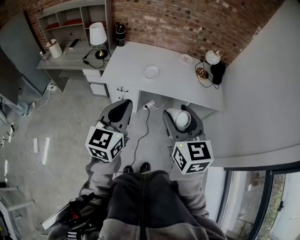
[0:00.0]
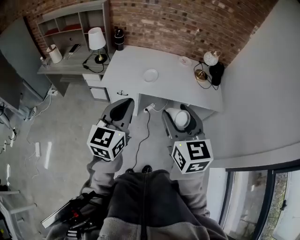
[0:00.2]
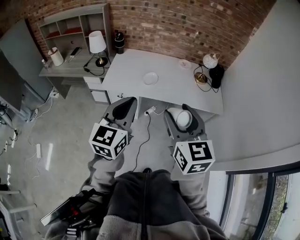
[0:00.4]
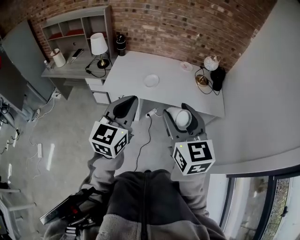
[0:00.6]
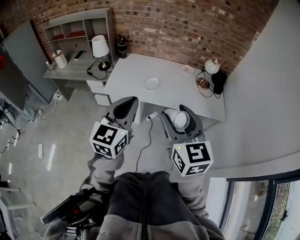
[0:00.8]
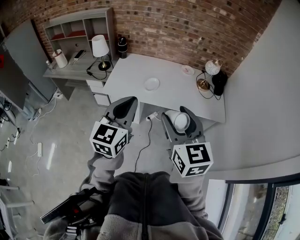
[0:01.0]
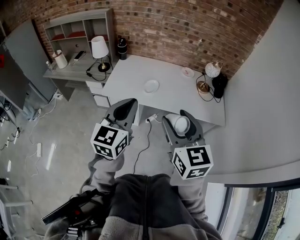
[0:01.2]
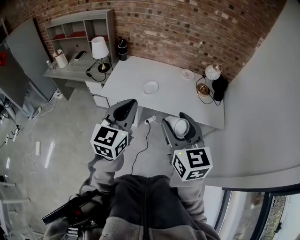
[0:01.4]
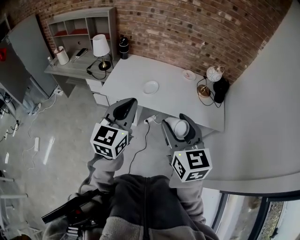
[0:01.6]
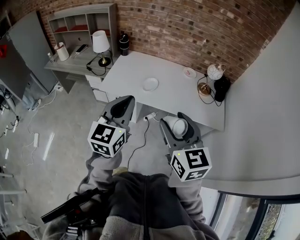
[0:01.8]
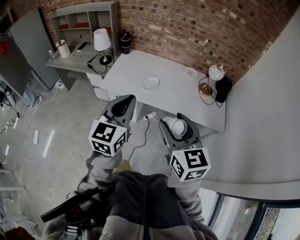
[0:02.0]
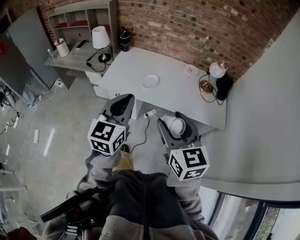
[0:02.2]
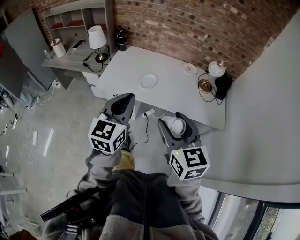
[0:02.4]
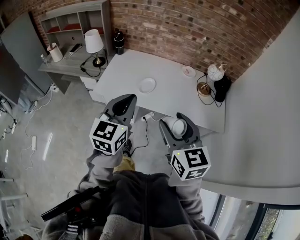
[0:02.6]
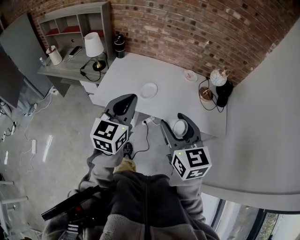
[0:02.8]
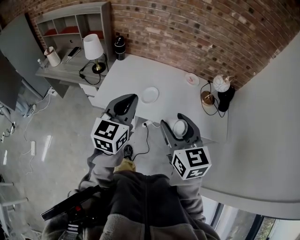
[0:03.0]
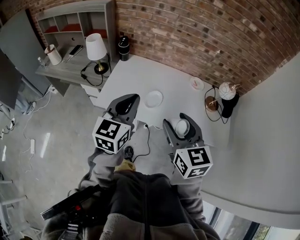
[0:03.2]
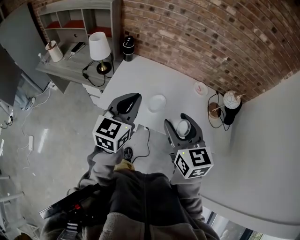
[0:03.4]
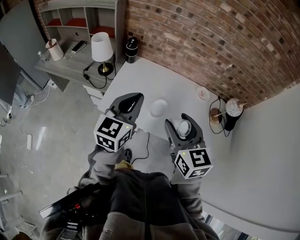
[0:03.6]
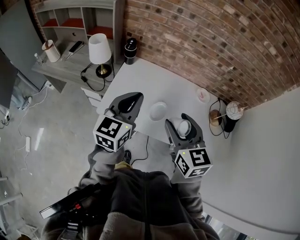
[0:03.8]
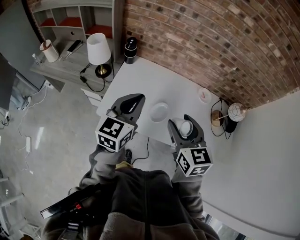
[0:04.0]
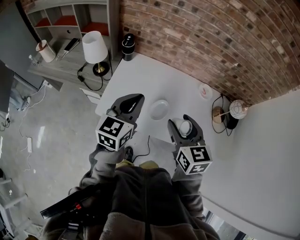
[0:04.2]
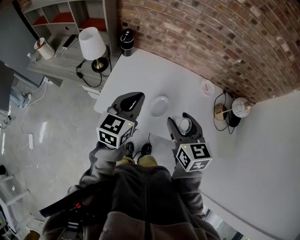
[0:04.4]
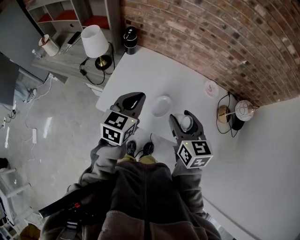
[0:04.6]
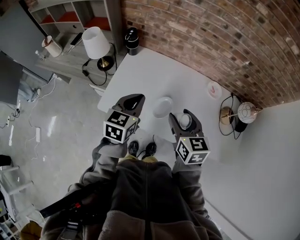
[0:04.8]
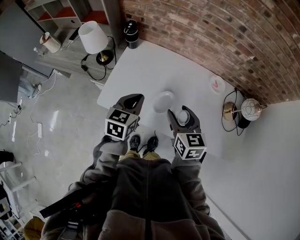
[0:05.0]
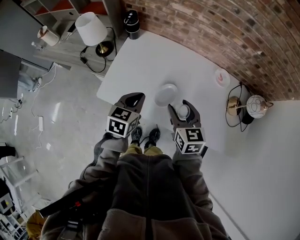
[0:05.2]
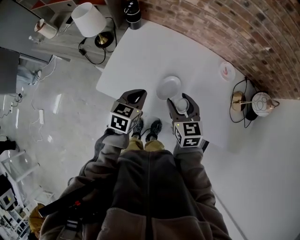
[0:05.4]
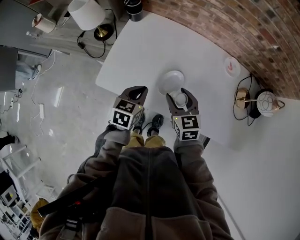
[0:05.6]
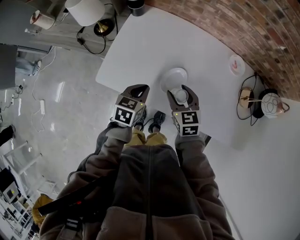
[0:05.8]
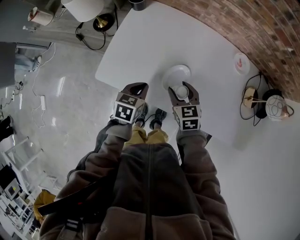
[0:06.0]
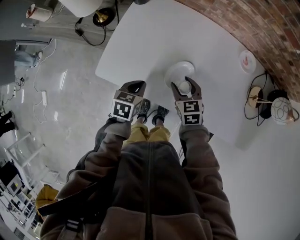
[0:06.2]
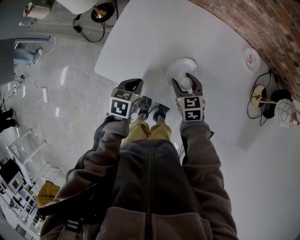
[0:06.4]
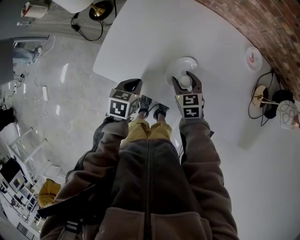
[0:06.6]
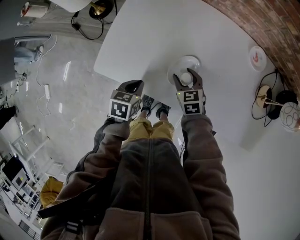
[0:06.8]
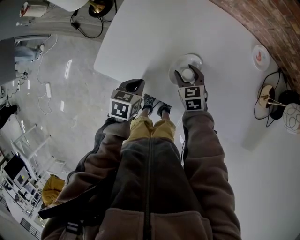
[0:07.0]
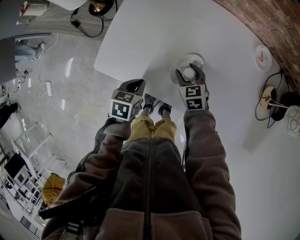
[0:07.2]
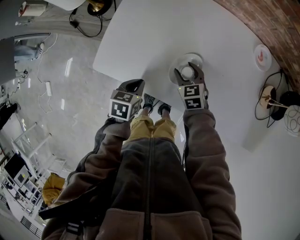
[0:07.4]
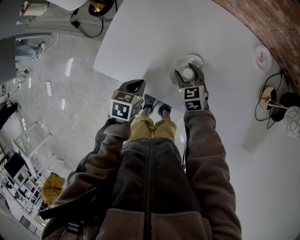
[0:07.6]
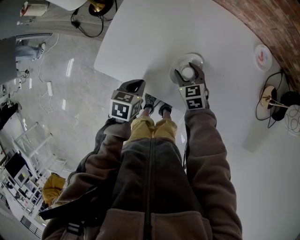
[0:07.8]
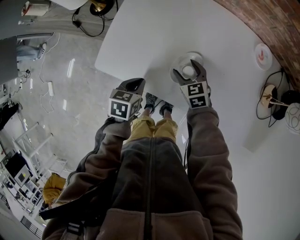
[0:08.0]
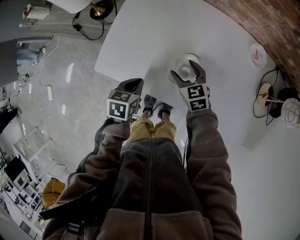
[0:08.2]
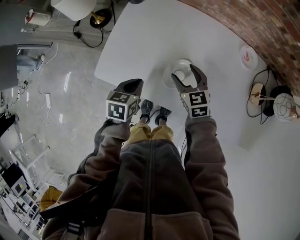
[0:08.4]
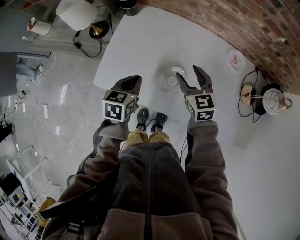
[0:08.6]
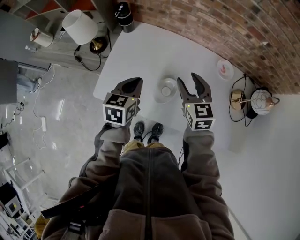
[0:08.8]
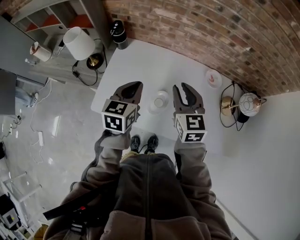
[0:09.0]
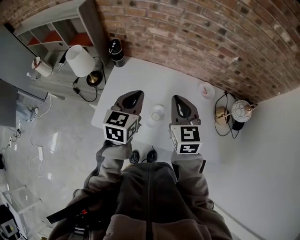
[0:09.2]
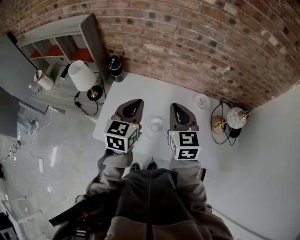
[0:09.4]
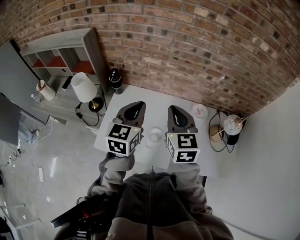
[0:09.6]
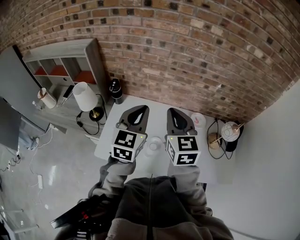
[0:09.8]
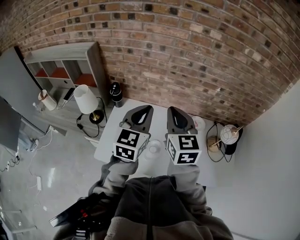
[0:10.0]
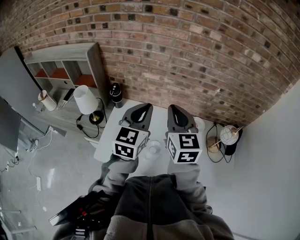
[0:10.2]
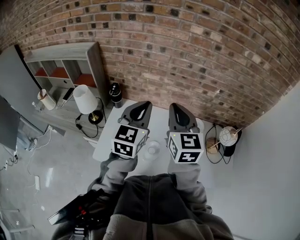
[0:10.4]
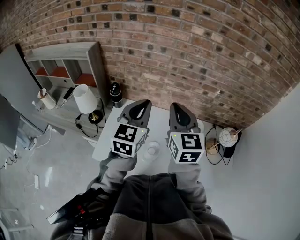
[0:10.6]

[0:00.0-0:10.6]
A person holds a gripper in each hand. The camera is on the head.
0:00.0 to 0:01.6: The right gripper shifts some 10 cm to the right. Meanwhile the left gripper is displaced to the right and forward by approximately 10 cm.
0:01.6 to 0:03.0: Both grippers travel together forward, about 15 cm.
0:03.0 to 0:04.6: The left gripper goes approximately 25 cm forward and downward. The right gripper moves forward, about 25 cm.
0:04.6 to 0:06.0: Both grippers travel together downward, approximately 25 cm. The left gripper rotates approximately 30 degrees, while the right gripper turns by roughly 20 degrees.
0:06.0 to 0:07.6: The left gripper shifts about 5 cm downward. The right gripper shifts roughly 10 cm downward.
0:07.6 to 0:09.0: Both grippers travel together upward, some 30 cm. The left gripper angles its fingers upward, by roughly 30 degrees. Meanwhile the right gripper changes its angle by roughly 30 degrees, and closes its fingers.
0:09.0 to 0:10.6: The grippers both shift upward by about 20 cm. The left gripper changes its angle by some 30 degrees.

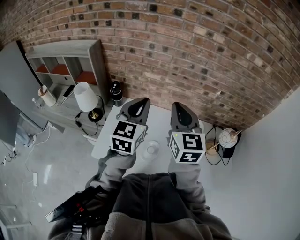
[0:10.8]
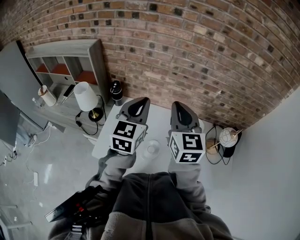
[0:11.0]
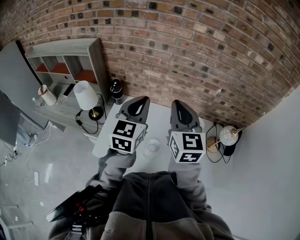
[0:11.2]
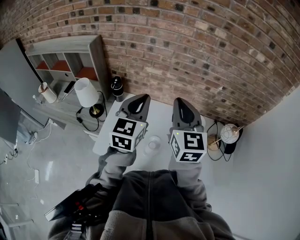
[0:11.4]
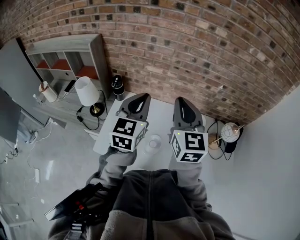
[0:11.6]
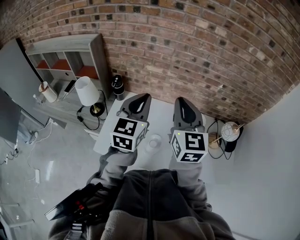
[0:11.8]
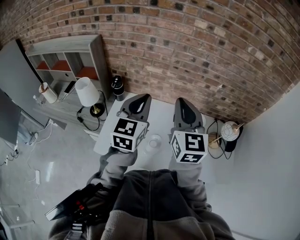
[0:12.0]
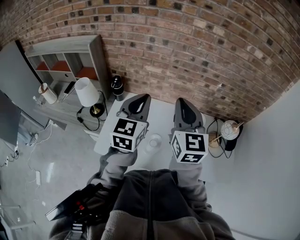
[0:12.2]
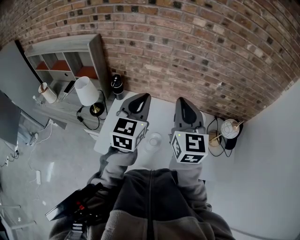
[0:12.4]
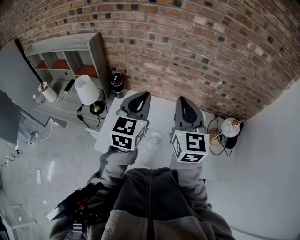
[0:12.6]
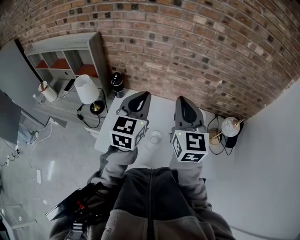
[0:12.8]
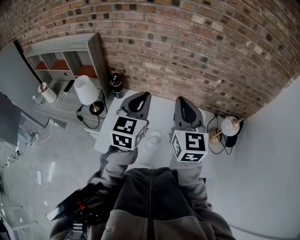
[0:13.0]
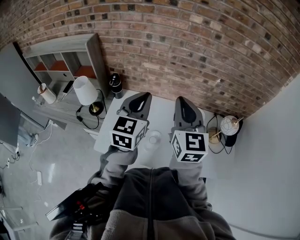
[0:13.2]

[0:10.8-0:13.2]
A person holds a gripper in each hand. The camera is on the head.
0:10.8 to 0:13.2: There are only small adjustments of the grippers.

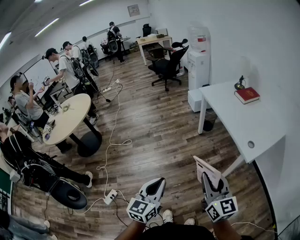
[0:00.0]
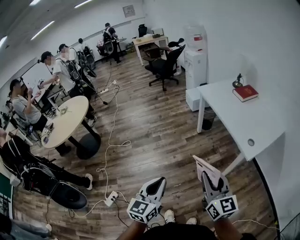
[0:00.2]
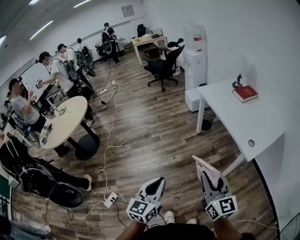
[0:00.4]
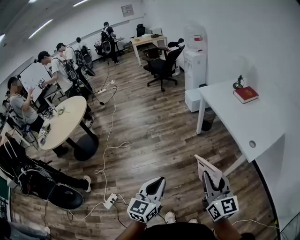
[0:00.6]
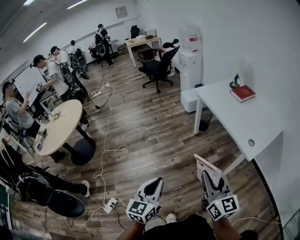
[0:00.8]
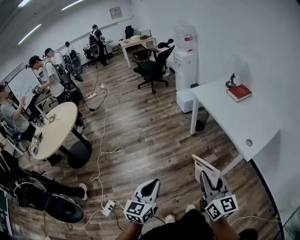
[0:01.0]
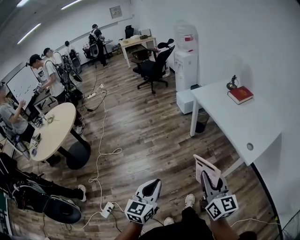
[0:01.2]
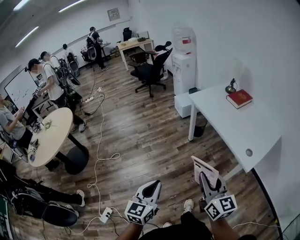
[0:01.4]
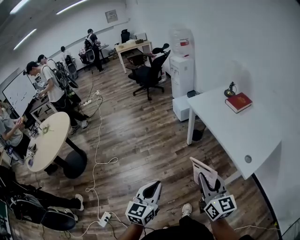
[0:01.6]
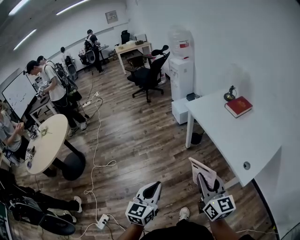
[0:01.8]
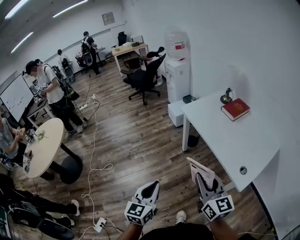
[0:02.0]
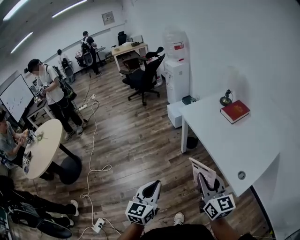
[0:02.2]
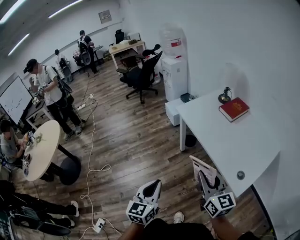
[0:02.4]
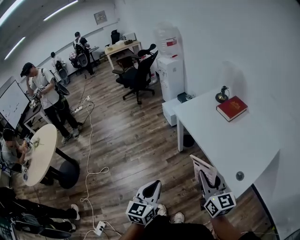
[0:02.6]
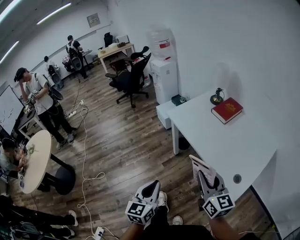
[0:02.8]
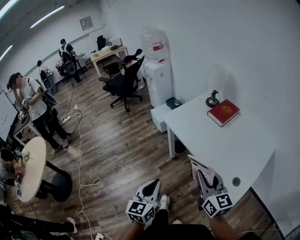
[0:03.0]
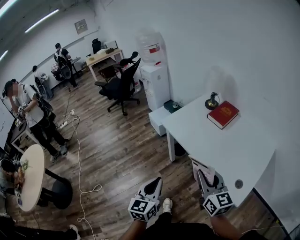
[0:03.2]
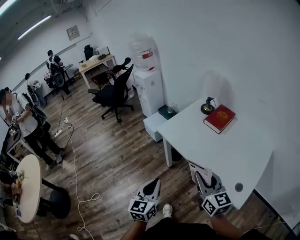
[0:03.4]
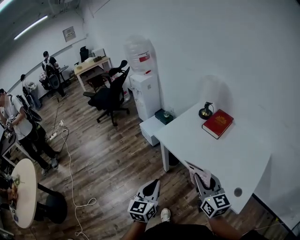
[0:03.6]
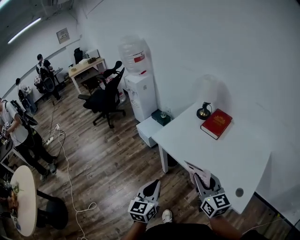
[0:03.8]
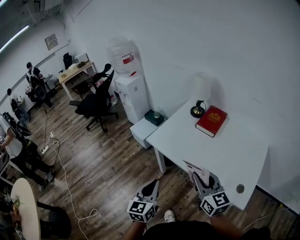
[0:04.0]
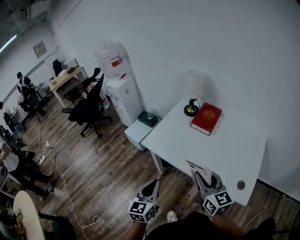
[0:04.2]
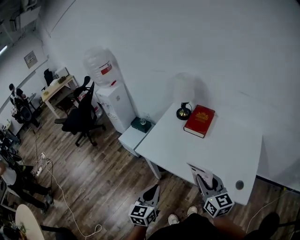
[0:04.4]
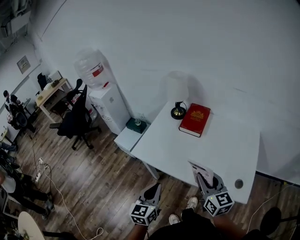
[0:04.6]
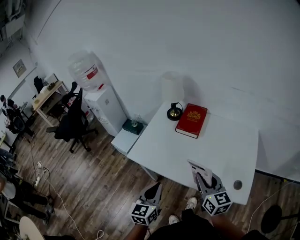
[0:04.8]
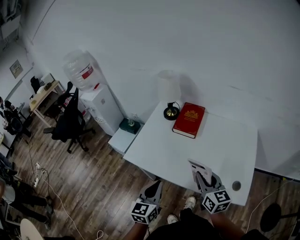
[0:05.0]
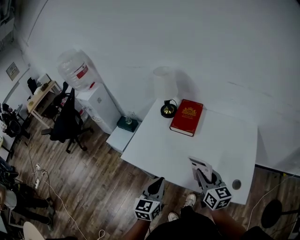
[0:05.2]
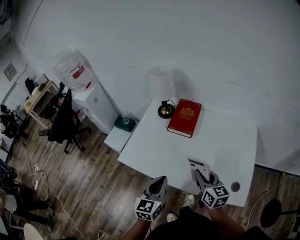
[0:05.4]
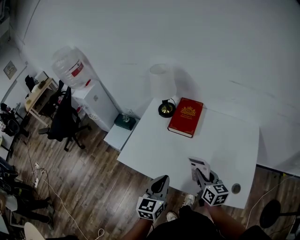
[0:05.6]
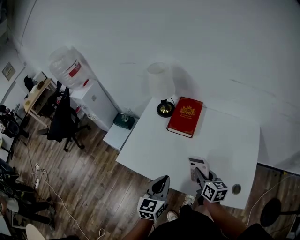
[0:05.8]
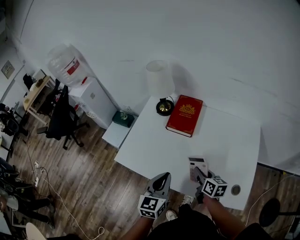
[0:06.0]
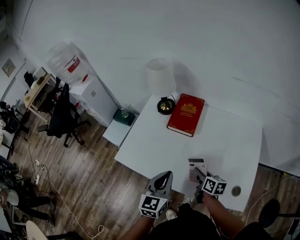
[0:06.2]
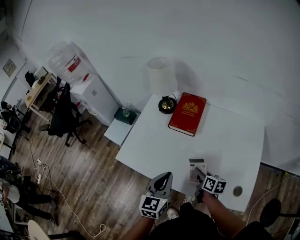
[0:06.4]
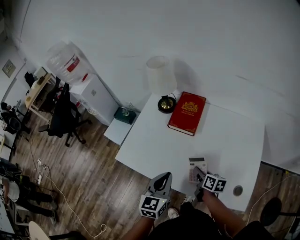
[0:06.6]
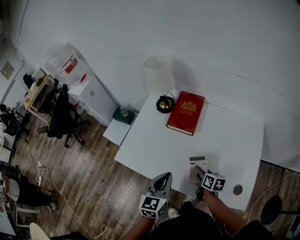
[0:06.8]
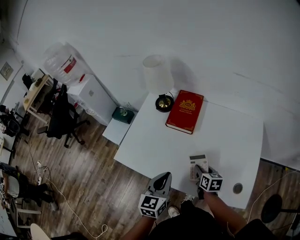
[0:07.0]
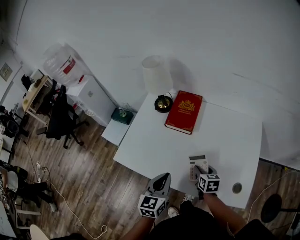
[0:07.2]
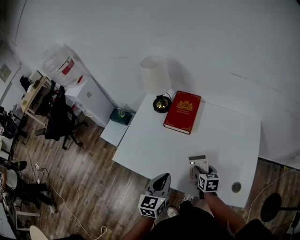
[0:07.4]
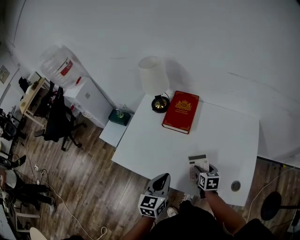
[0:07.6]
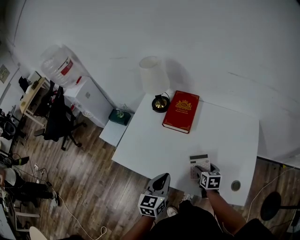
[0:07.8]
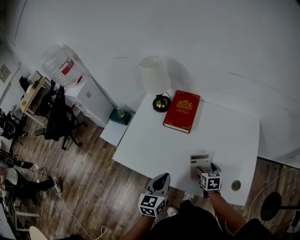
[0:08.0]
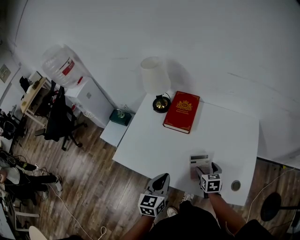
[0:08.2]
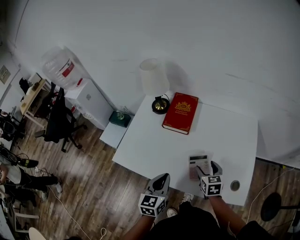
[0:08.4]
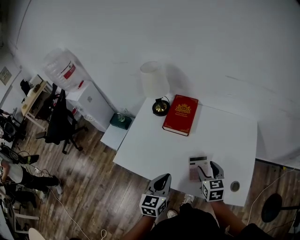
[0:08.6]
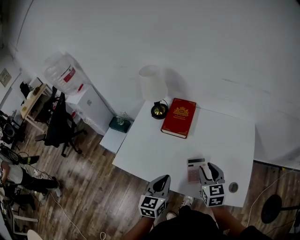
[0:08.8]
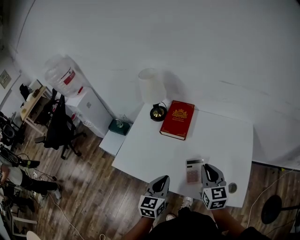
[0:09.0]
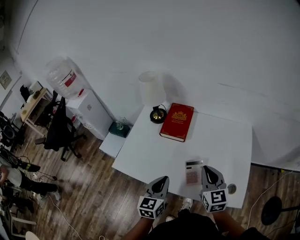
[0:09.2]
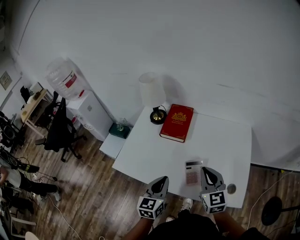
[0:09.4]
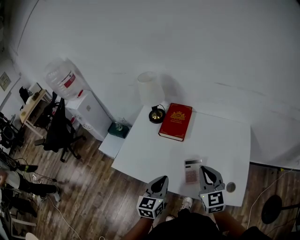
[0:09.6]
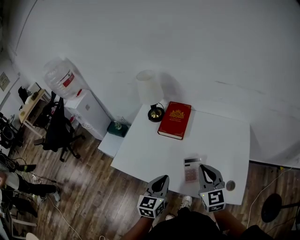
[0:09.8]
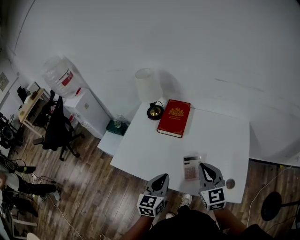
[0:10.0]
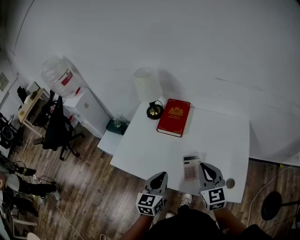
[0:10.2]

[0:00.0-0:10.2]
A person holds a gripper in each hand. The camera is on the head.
0:00.0 to 0:01.4: Both grippers move forward, roughly 15 cm.
0:01.4 to 0:03.0: Both grippers move forward and to the right, roughly 35 cm.
0:03.0 to 0:04.4: The two grippers go roughly 20 cm forward. The left gripper rotates roughly 20 degrees. The right gripper swivels some 20 degrees.
0:04.4 to 0:05.8: The left gripper goes about 20 cm forward and to the right; the right gripper shifts approximately 25 cm downward, forward and to the right, and rotates approximately 30 degrees.
0:05.8 to 0:07.2: The right gripper shifts about 10 cm downward, and turns by about 20 degrees.
0:07.2 to 0:08.8: The right gripper goes roughly 15 cm upward, changes its angle by roughly 30 degrees, and opens and closes again.
0:08.8 to 0:10.2: The right gripper moves upward, about 5 cm, and closes its fingers.
